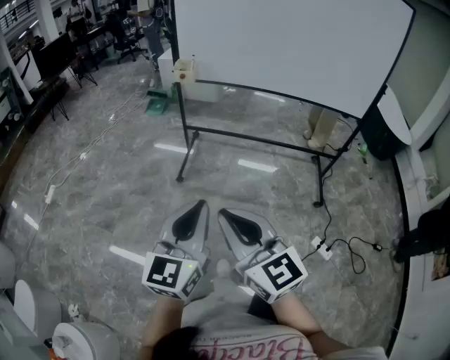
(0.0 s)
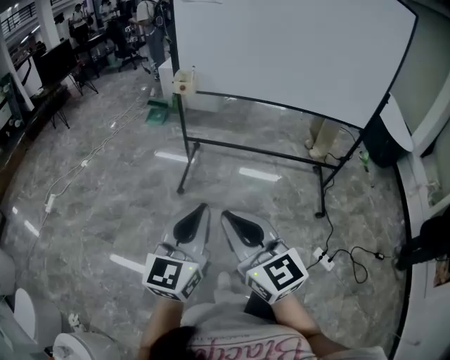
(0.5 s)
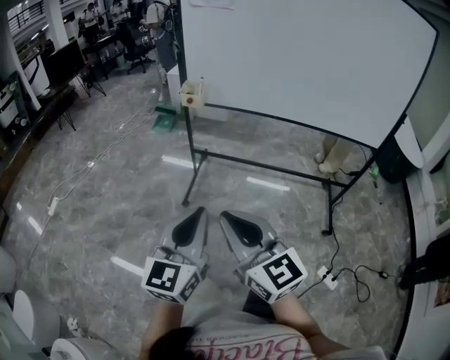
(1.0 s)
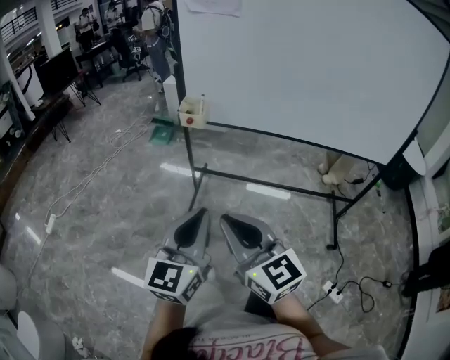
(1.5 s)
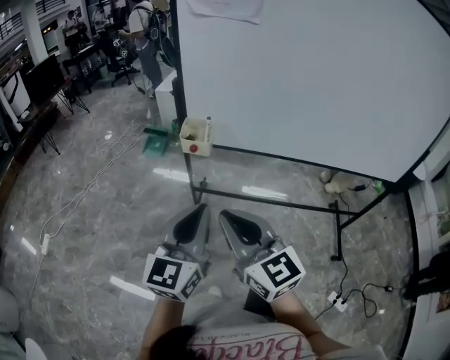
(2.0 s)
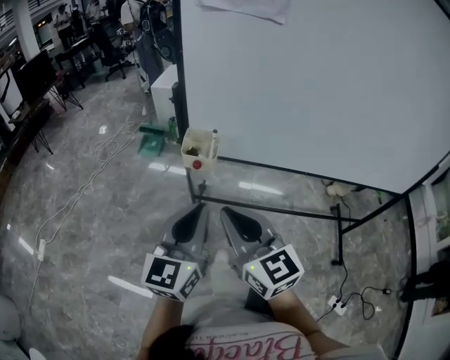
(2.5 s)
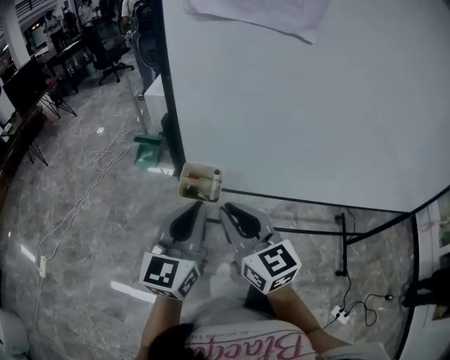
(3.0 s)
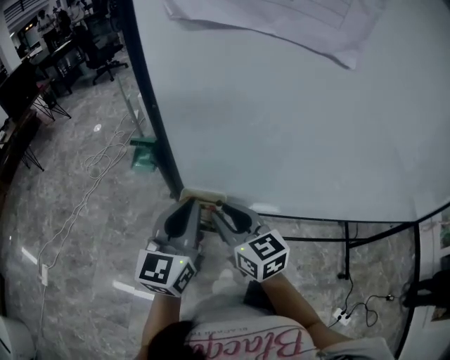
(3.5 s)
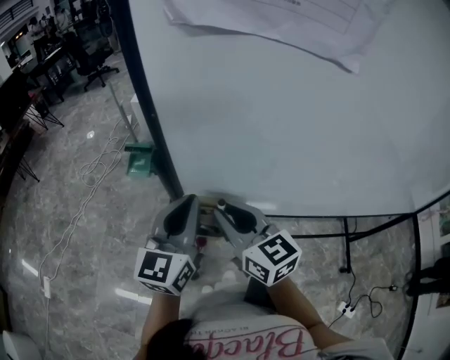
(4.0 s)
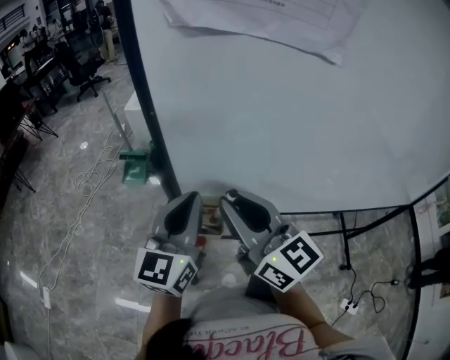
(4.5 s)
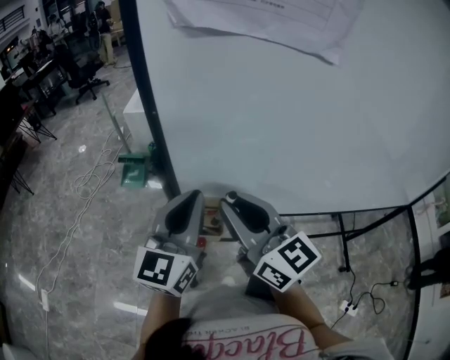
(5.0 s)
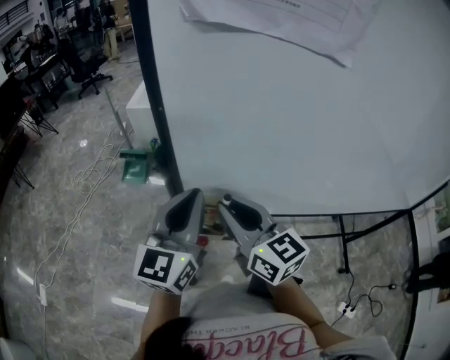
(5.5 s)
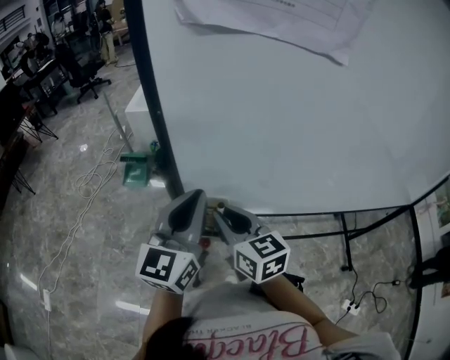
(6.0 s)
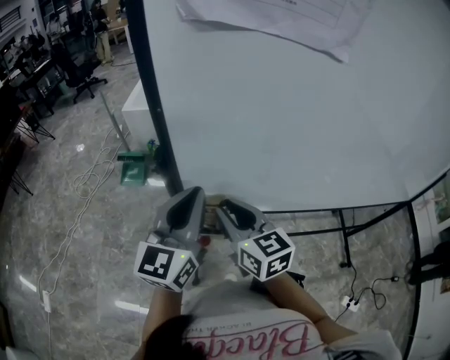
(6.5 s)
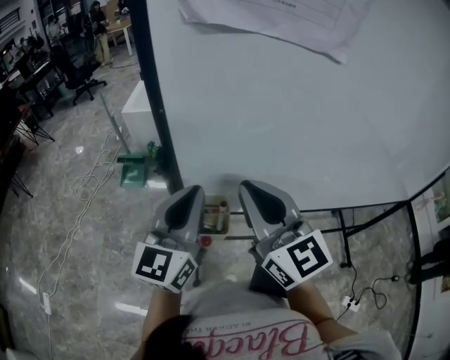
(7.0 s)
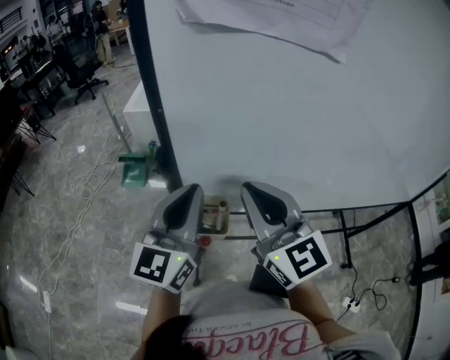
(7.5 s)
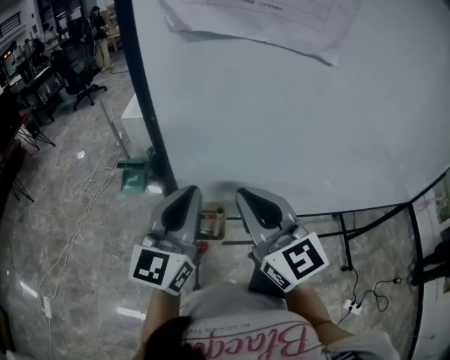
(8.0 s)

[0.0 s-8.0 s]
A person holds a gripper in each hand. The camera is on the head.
0.0 to 2.0 s: Both grippers travel together forward, roughly 35 cm.
2.0 to 4.0 s: Both grippers travel together forward, roughly 30 cm.
4.0 to 6.0 s: The right gripper goes upward and returns, roughly 10 cm each way.
6.0 to 8.0 s: The right gripper heads upward, covering about 10 cm, and swivels some 30 degrees.

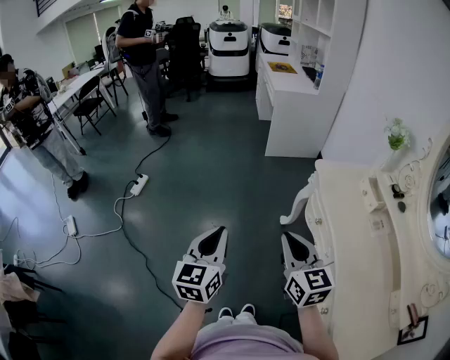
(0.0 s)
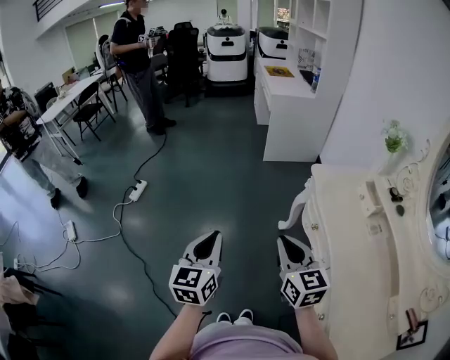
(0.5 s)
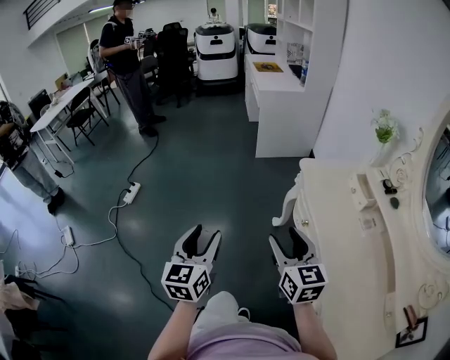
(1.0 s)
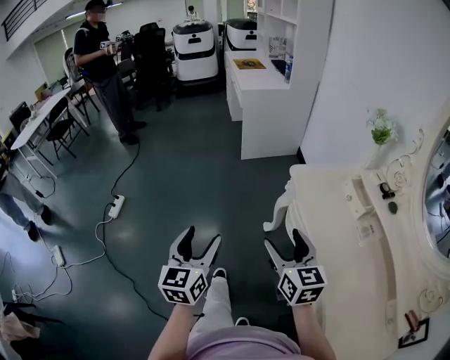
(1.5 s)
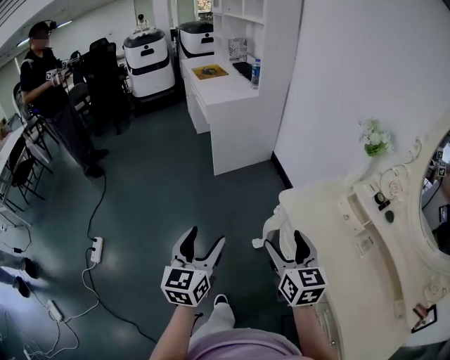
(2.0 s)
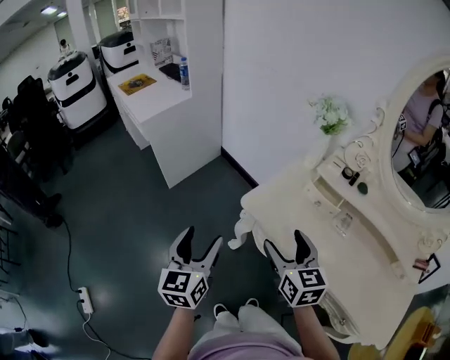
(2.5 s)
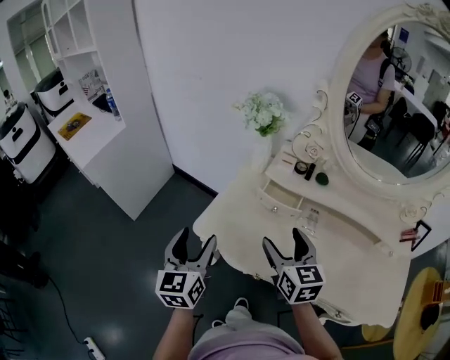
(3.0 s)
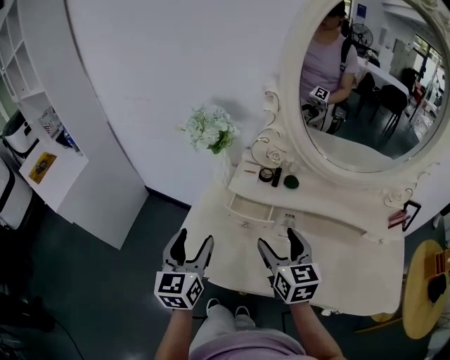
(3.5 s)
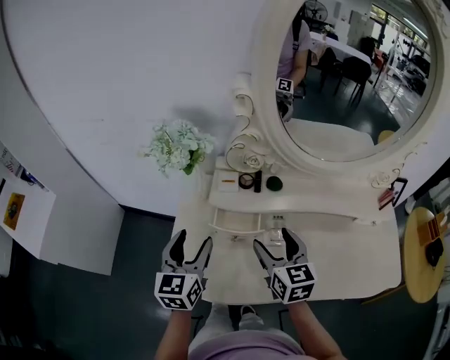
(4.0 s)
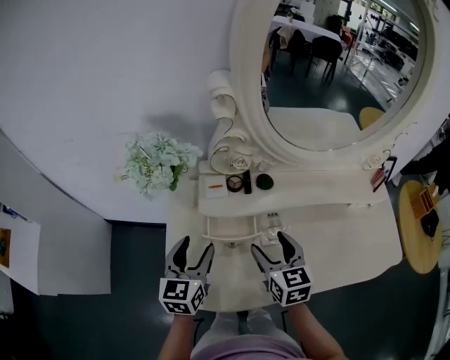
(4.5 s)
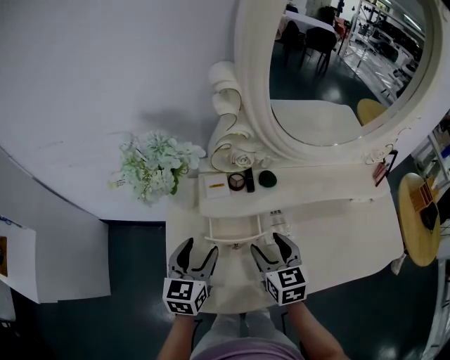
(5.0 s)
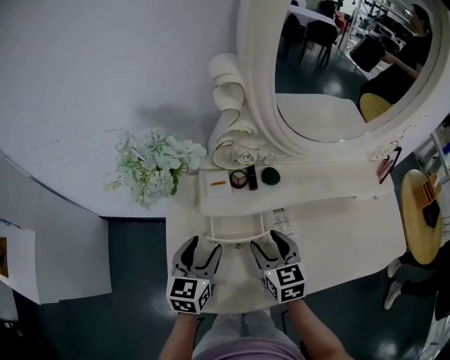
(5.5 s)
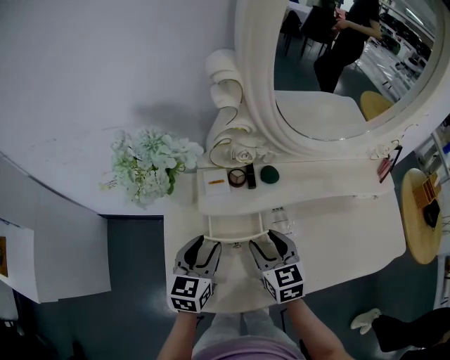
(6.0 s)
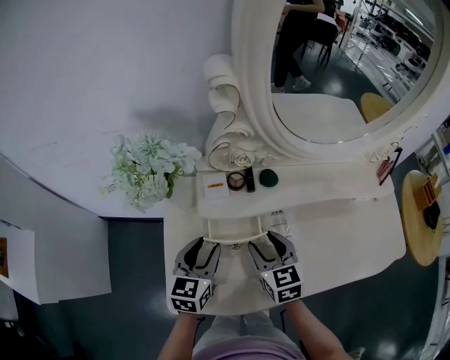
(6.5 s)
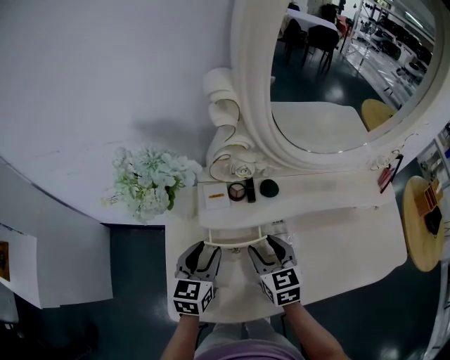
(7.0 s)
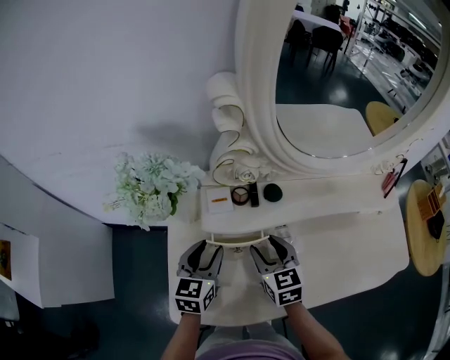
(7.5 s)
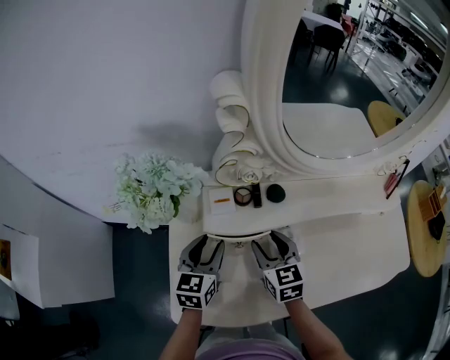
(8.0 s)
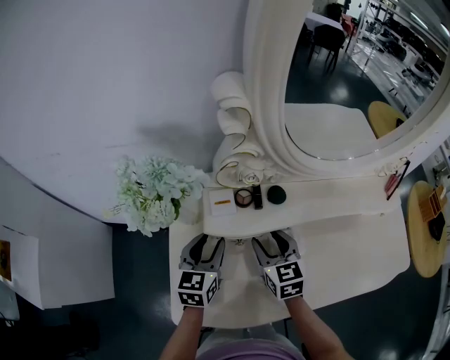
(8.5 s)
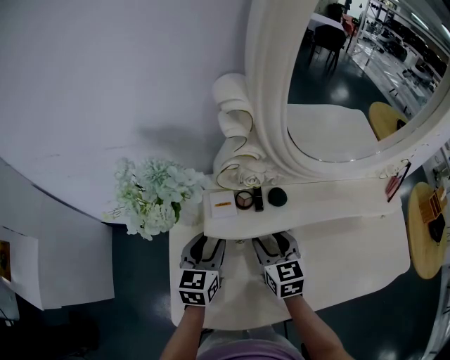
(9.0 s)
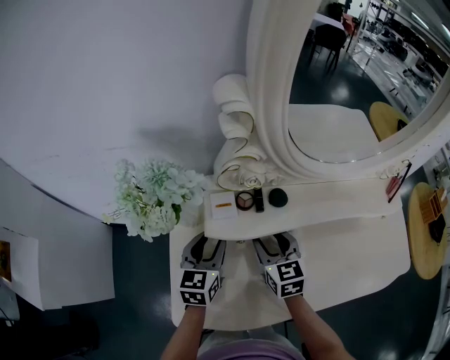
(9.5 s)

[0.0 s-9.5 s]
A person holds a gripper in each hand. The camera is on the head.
0.0 to 2.0 s: The two grippers go some 30 cm forward. The right gripper turns by approximately 30 degrees, and opens its fingers. Meanwhile the left gripper opens its fingers.
2.0 to 4.0 s: The right gripper changes place by roughly 35 cm, and turns by approximately 60 degrees, while the left gripper shifts by roughly 50 cm, and changes its angle by about 60 degrees.
4.0 to 5.5 s: The two grippers go about 10 cm downward. The left gripper turns by roughly 20 degrees.
5.5 to 7.5 s: The grippers make only small movements.
7.5 to 9.5 s: The grippers make only small movements.

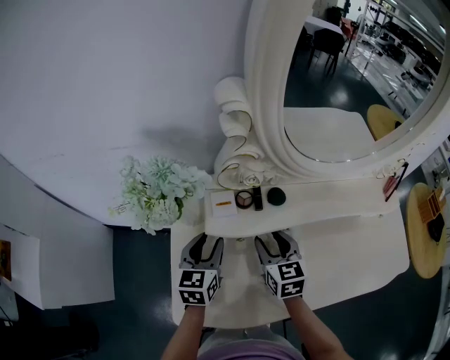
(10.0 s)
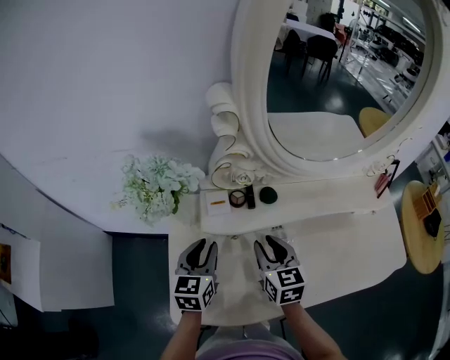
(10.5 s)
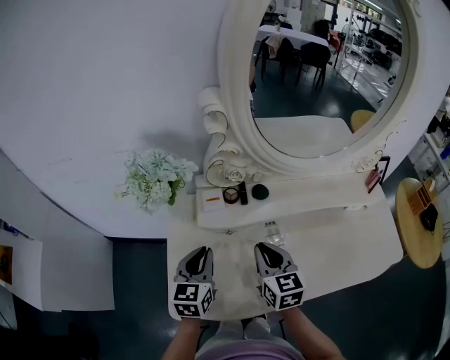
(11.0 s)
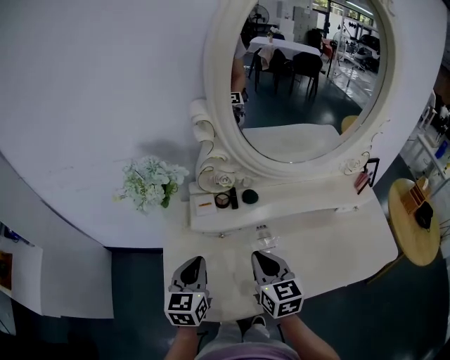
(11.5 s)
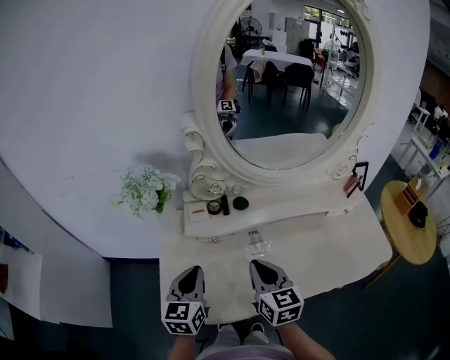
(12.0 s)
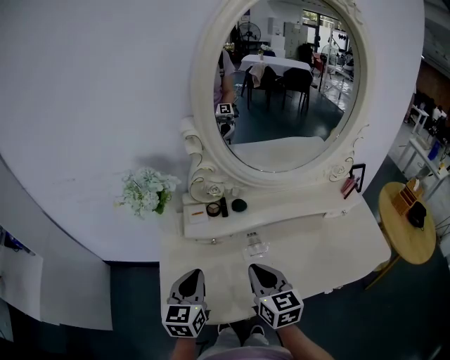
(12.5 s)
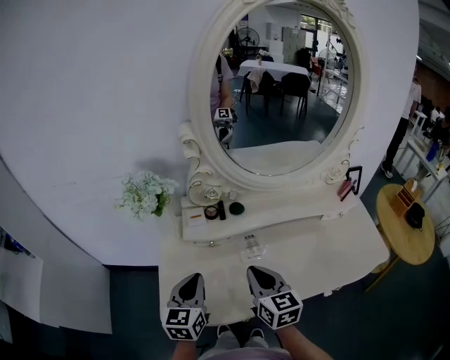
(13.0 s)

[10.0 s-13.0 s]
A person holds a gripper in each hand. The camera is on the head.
10.0 to 11.5 s: Both grippers travel together backward and upward, some 10 cm. The right gripper closes; the left gripper closes up.
11.5 to 13.0 s: The right gripper shifts by roughly 5 cm. The left gripper shifts by about 5 cm.

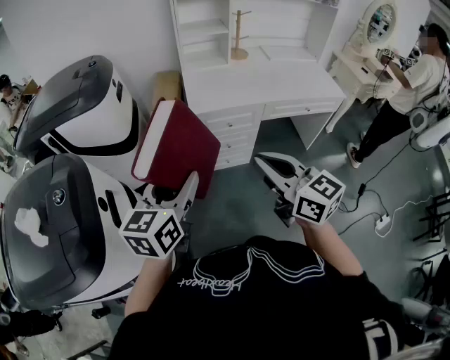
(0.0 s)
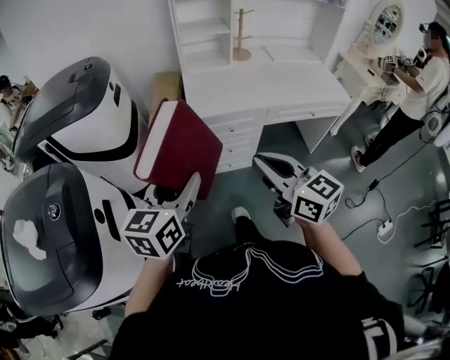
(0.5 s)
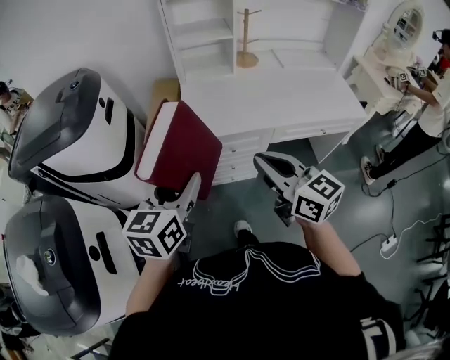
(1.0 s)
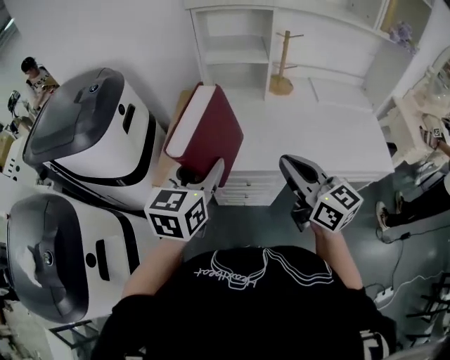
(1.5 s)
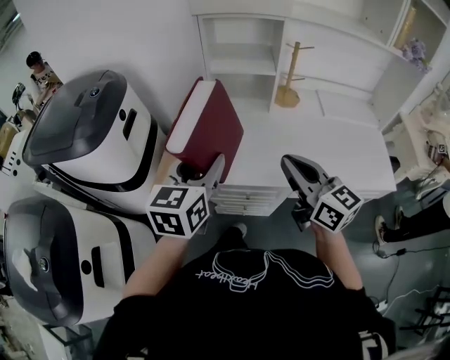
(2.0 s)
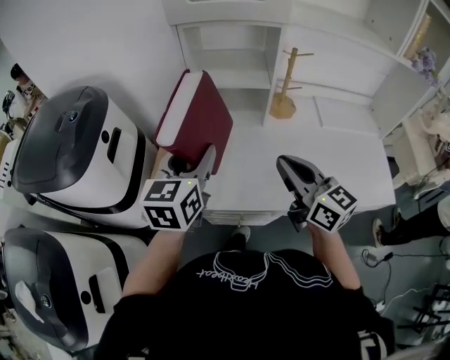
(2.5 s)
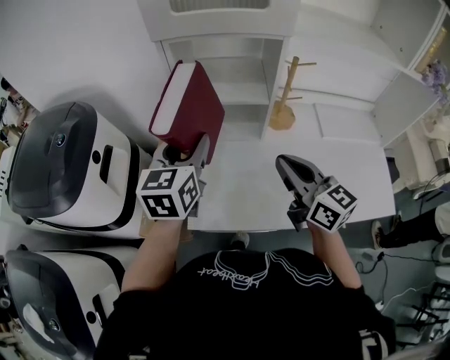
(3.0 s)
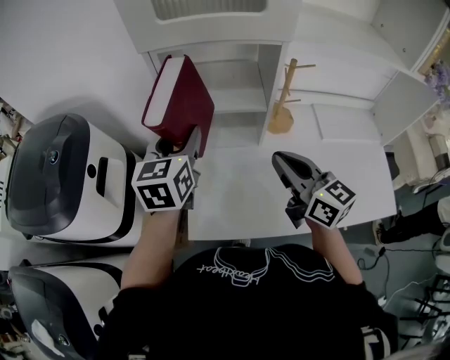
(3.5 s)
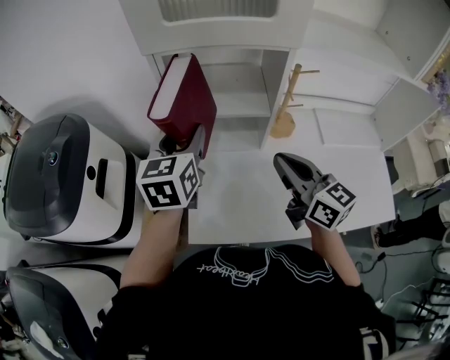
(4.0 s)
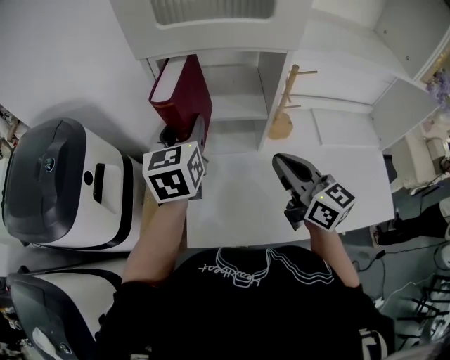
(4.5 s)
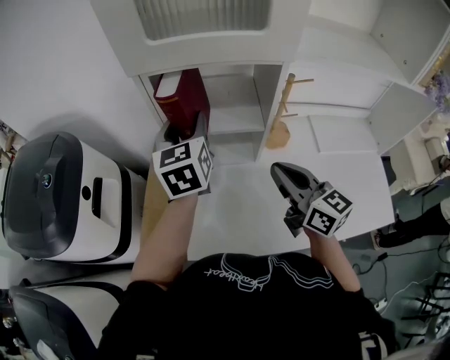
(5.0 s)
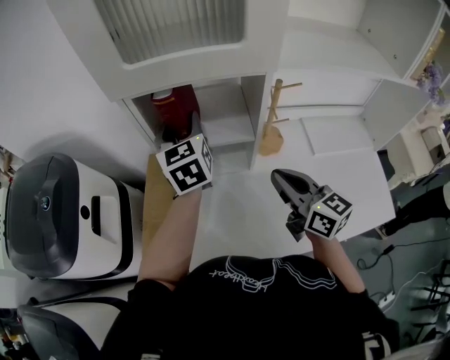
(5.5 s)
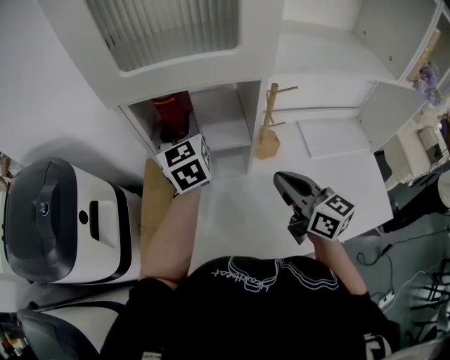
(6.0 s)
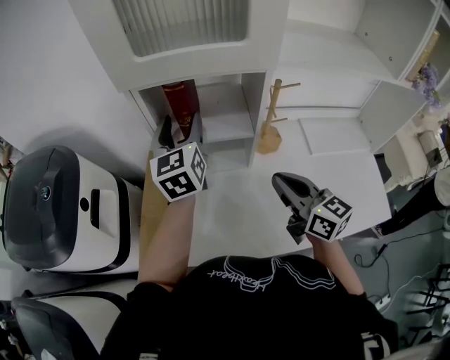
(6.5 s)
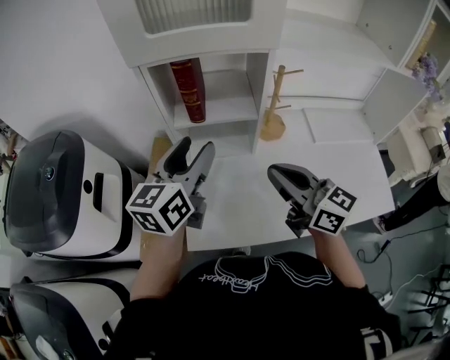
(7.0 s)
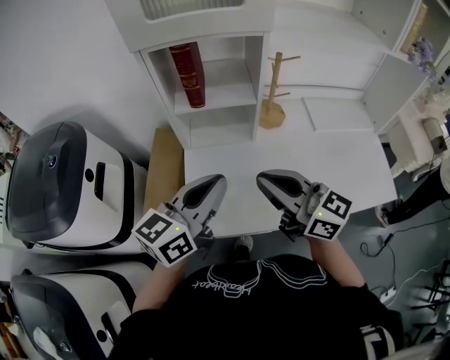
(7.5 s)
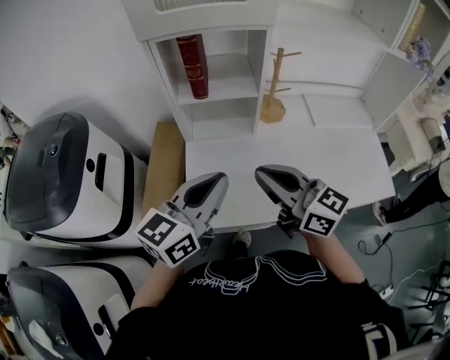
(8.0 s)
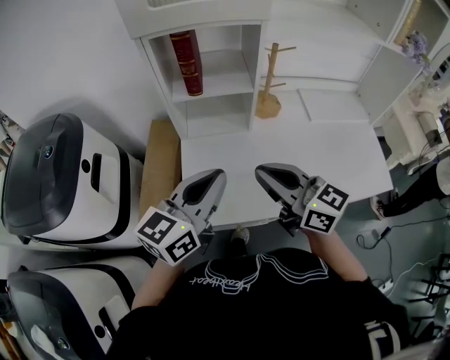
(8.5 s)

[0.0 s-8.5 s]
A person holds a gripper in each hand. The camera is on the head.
0.0 to 2.0 s: The two grippers travel together, forward and to the right, approximately 40 cm.
2.0 to 4.0 s: Both grippers travel together forward, approximately 25 cm.
4.0 to 6.5 s: The left gripper travels forward and to the right by some 10 cm.
6.5 to 8.5 s: The right gripper moves backward and to the left, about 15 cm. Meanwhile the left gripper heads backward, covering roughly 30 cm, changes its angle by about 40 degrees, and closes its fingers.
